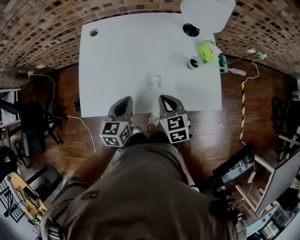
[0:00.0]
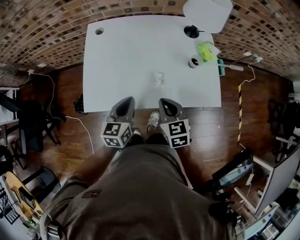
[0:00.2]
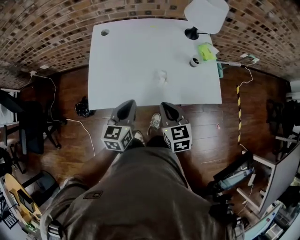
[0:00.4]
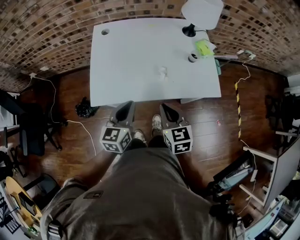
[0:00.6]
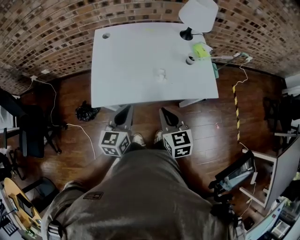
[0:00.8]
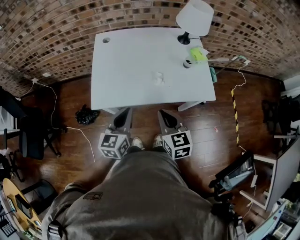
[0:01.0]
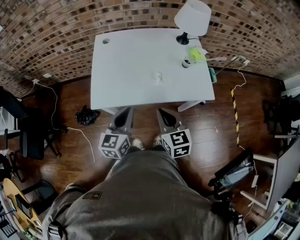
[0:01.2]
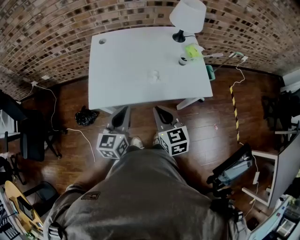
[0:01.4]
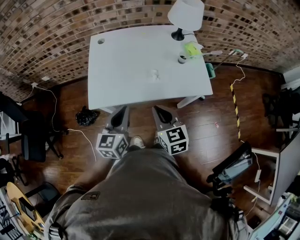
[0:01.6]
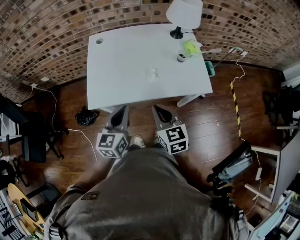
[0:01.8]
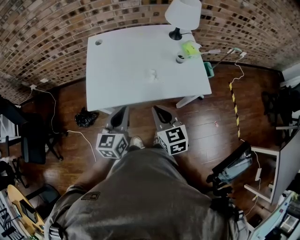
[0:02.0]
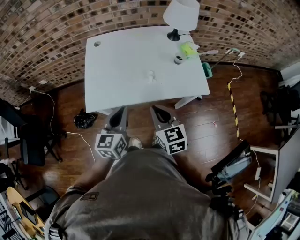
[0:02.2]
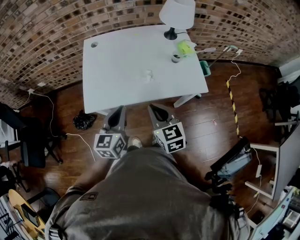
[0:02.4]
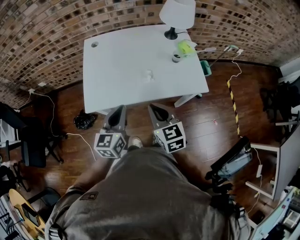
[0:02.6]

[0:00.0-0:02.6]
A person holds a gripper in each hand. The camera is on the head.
0:00.0 to 0:01.2: Both grippers travel together backward and upward, about 20 cm.
0:01.2 to 0:02.6: The two grippers keep their place.

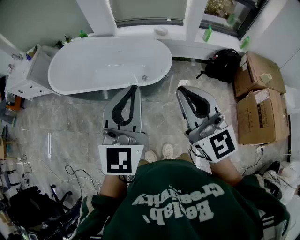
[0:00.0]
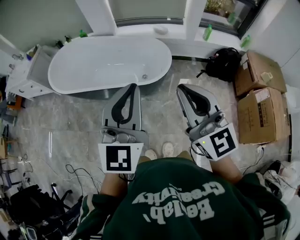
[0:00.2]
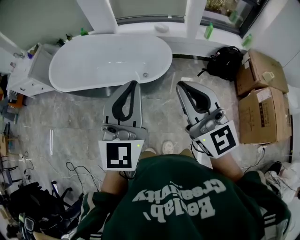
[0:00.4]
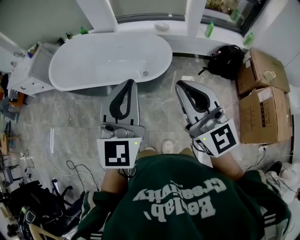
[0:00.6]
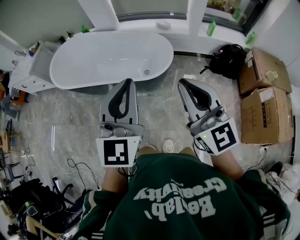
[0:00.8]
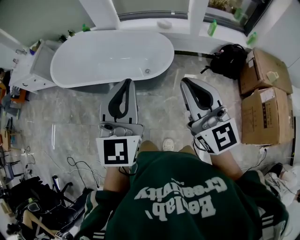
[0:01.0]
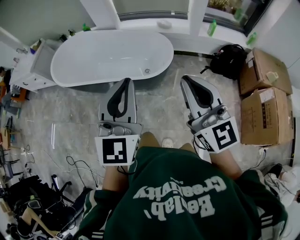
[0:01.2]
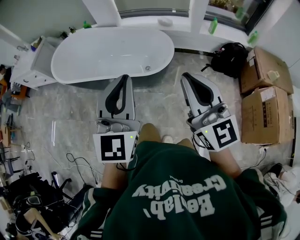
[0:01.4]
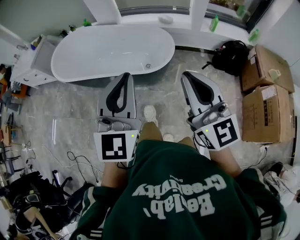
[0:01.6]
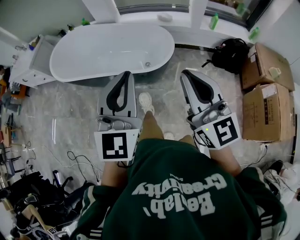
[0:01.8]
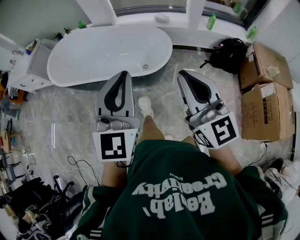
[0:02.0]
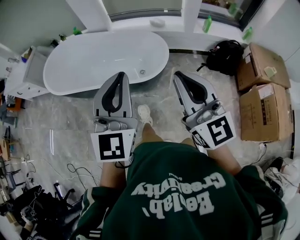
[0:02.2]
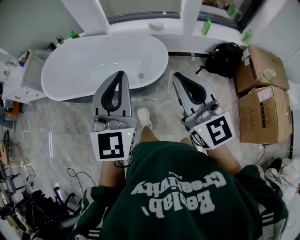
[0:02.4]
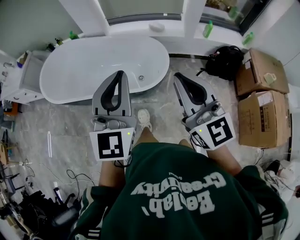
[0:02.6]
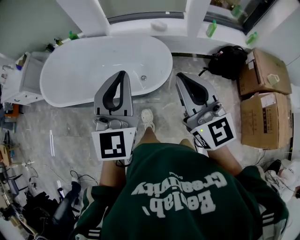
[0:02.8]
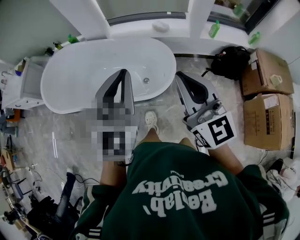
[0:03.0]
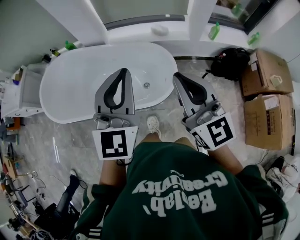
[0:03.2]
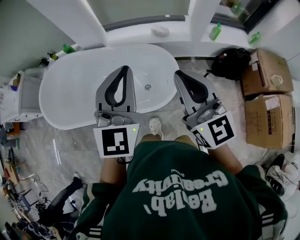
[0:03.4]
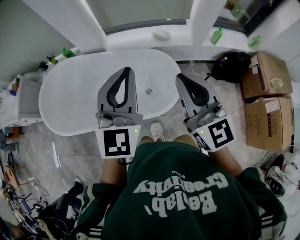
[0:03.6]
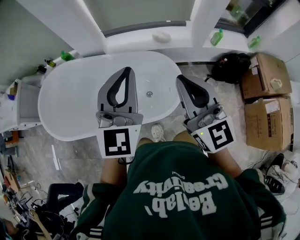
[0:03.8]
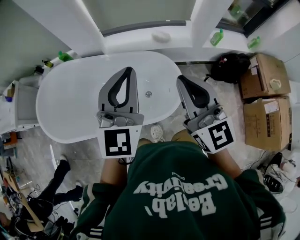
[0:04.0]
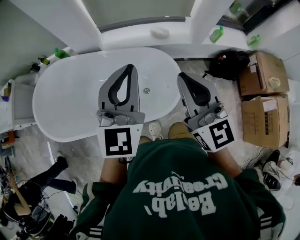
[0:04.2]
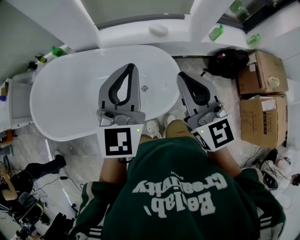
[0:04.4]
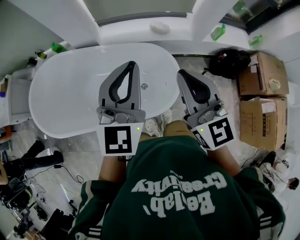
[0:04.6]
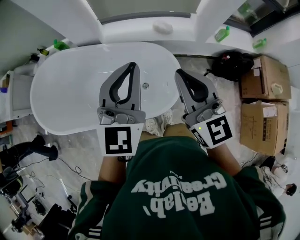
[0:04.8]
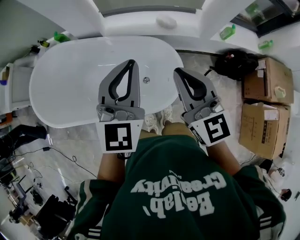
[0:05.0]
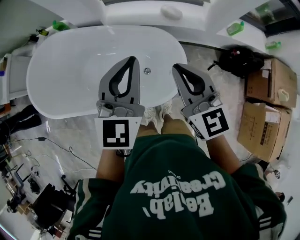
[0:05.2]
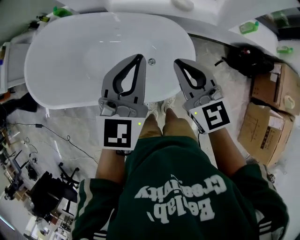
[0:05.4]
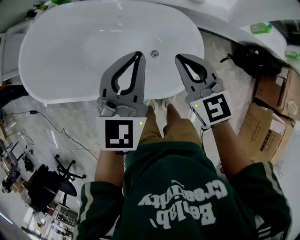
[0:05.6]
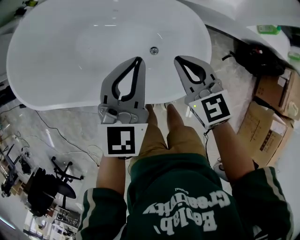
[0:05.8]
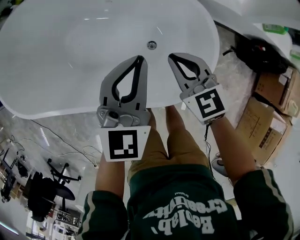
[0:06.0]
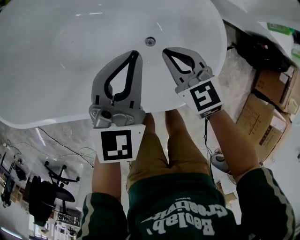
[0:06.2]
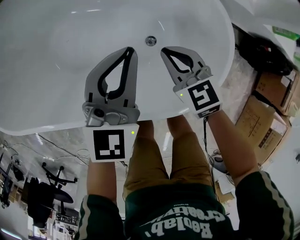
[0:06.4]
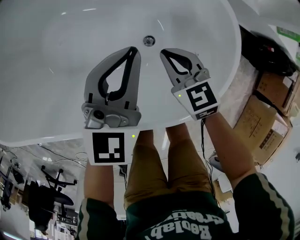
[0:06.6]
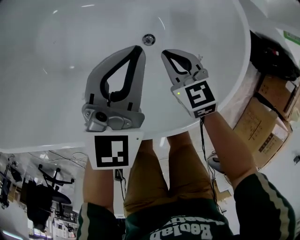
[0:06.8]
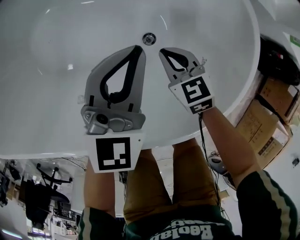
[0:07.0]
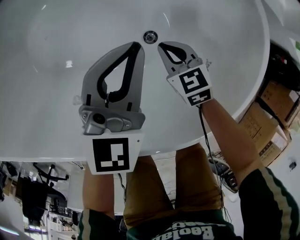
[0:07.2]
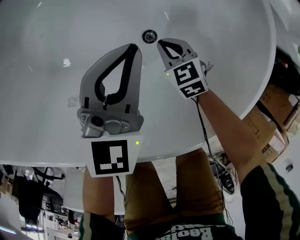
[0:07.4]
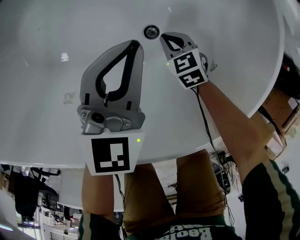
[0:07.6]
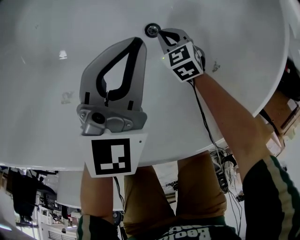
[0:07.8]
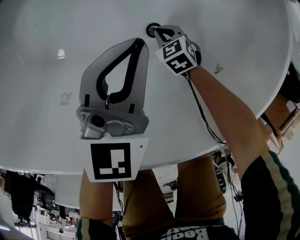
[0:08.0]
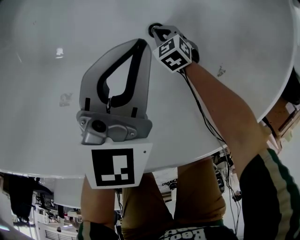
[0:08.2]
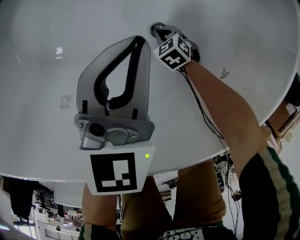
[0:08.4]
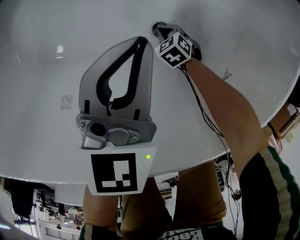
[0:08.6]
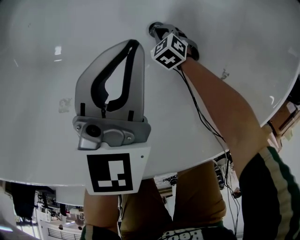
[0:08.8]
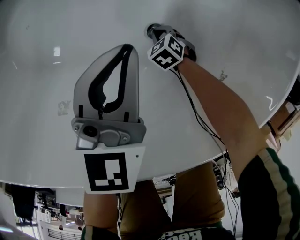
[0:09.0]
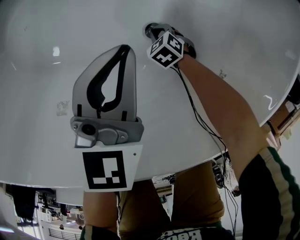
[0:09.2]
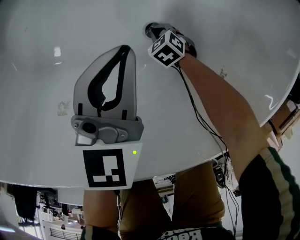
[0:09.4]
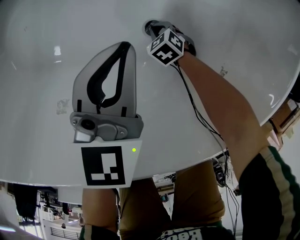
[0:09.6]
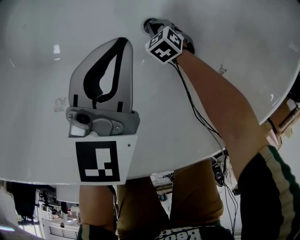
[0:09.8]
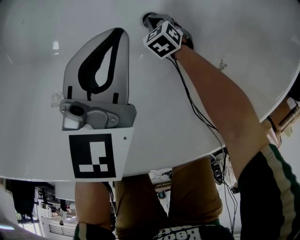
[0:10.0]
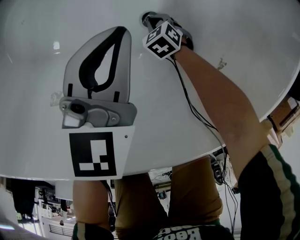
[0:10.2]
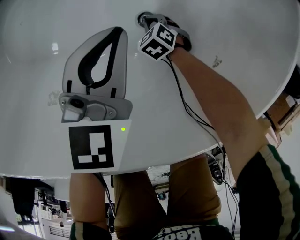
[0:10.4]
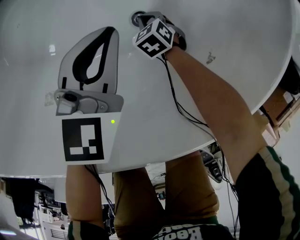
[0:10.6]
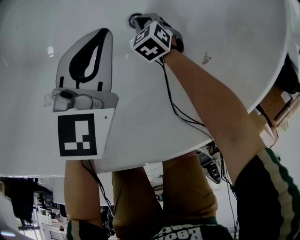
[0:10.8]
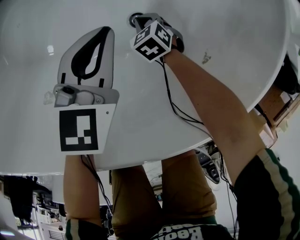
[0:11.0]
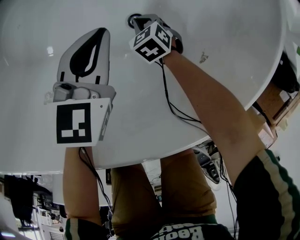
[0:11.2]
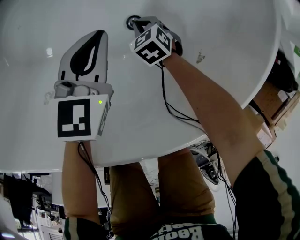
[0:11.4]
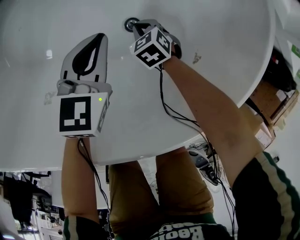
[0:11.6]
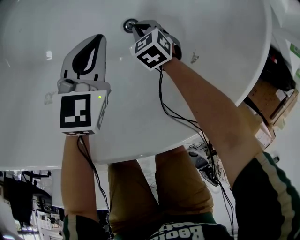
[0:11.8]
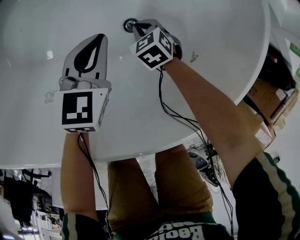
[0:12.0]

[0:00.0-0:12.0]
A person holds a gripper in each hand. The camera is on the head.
0:00.0 to 0:01.6: The right gripper heads to the right, covering about 5 cm.
0:01.6 to 0:03.0: The two grippers go approximately 25 cm forward.
0:03.0 to 0:04.4: The grippers both shift forward by roughly 20 cm.
0:04.4 to 0:06.0: The grippers both shift downward by roughly 35 cm. The left gripper swivels some 20 degrees, while the right gripper points its fingers some 30 degrees further downward.
0:06.0 to 0:07.6: The grippers both shift downward by approximately 35 cm. The right gripper rotates roughly 20 degrees.
0:07.6 to 0:09.0: The left gripper goes roughly 5 cm downward; the right gripper heads downward, covering approximately 15 cm, and swivels about 20 degrees.
0:09.0 to 0:10.4: The grippers stay close to where they were, moving slightly.
0:10.4 to 0:12.0: The right gripper shifts some 10 cm upward.

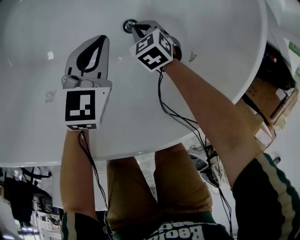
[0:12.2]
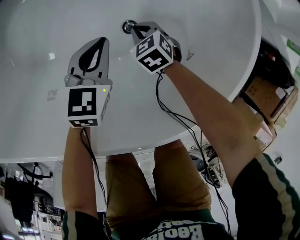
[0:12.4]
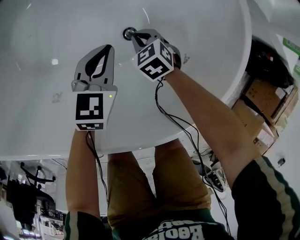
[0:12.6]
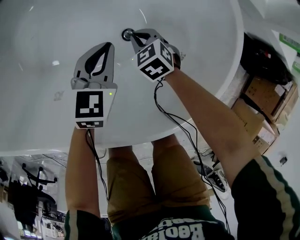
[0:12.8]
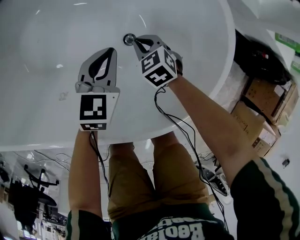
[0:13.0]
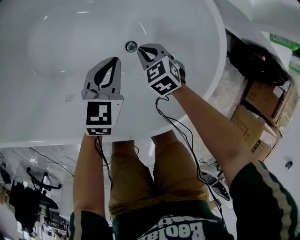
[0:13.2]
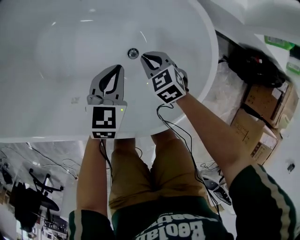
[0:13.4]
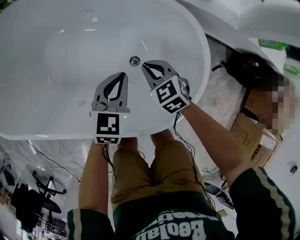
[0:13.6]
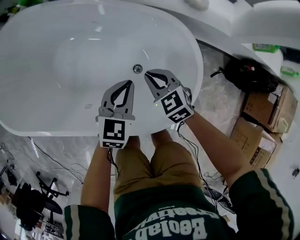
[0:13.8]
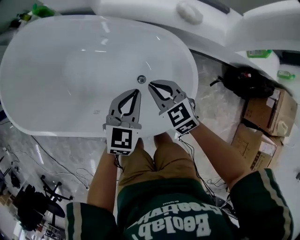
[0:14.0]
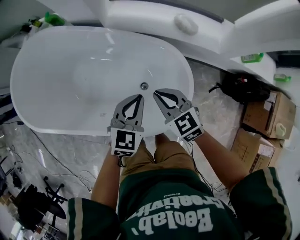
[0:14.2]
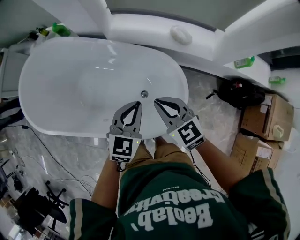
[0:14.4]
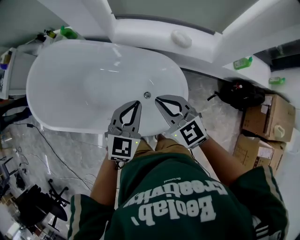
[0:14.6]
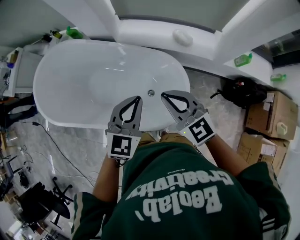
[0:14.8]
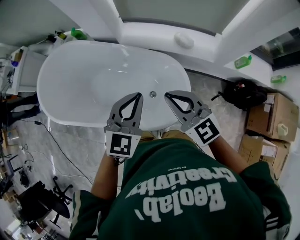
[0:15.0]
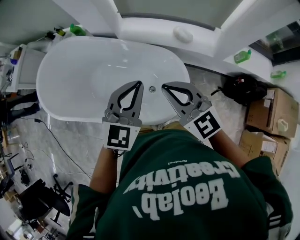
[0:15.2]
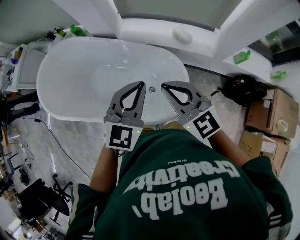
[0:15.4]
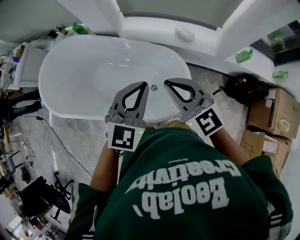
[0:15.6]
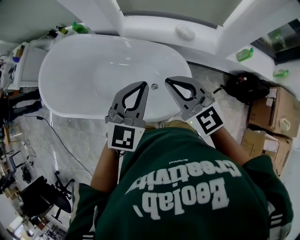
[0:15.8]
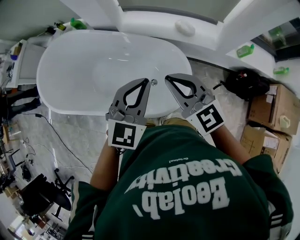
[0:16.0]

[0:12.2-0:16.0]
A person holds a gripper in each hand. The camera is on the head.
0:12.2 to 0:13.4: The right gripper is displaced upward by some 20 cm, while the left gripper heads upward, covering roughly 10 cm.
0:13.4 to 0:14.8: Both grippers travel together upward, about 50 cm. The left gripper changes its angle by some 20 degrees, while the right gripper tilts its fingers approximately 40 degrees upward.
0:14.8 to 0:16.0: Both grippers move upward, roughly 5 cm.

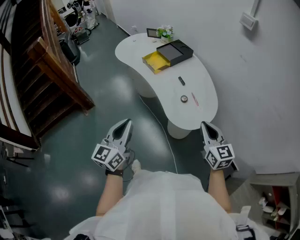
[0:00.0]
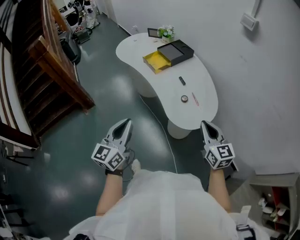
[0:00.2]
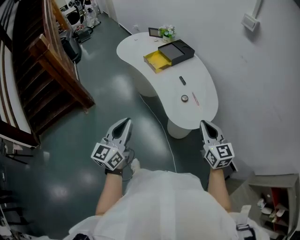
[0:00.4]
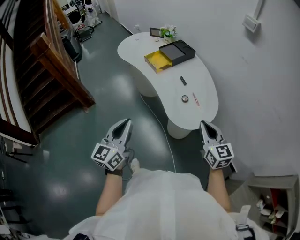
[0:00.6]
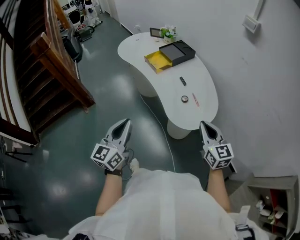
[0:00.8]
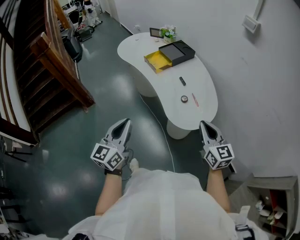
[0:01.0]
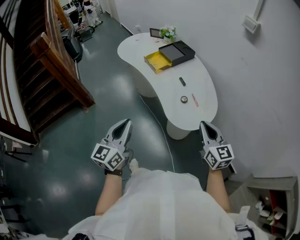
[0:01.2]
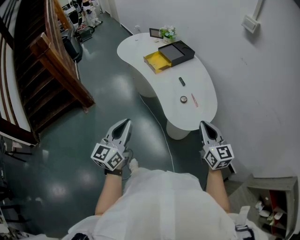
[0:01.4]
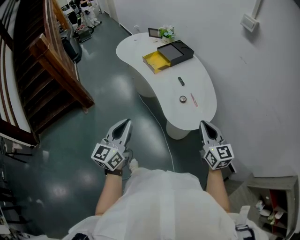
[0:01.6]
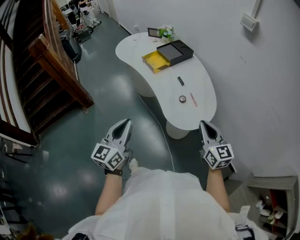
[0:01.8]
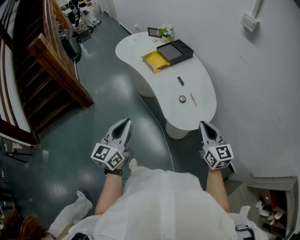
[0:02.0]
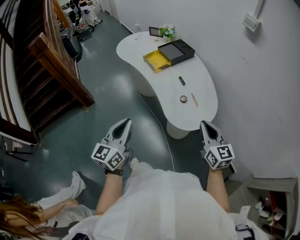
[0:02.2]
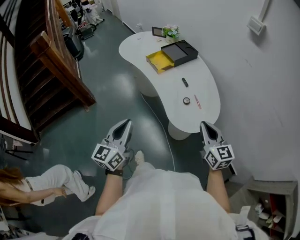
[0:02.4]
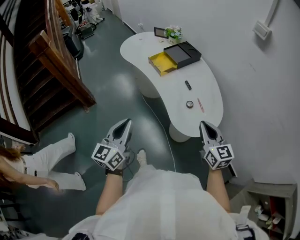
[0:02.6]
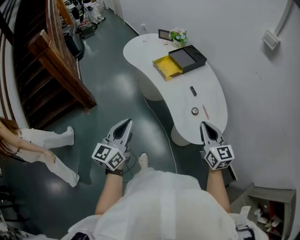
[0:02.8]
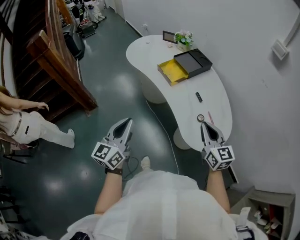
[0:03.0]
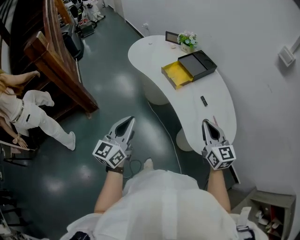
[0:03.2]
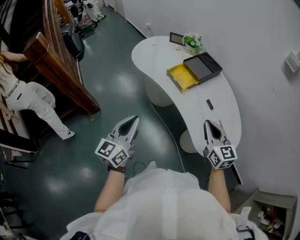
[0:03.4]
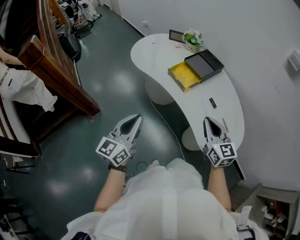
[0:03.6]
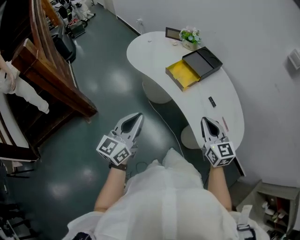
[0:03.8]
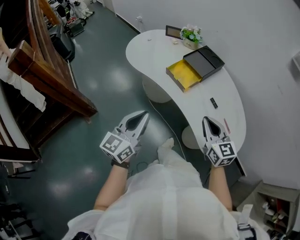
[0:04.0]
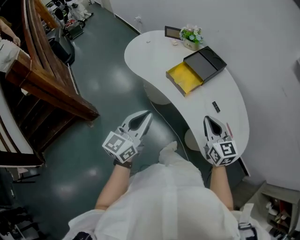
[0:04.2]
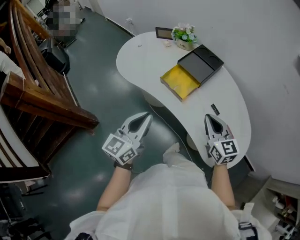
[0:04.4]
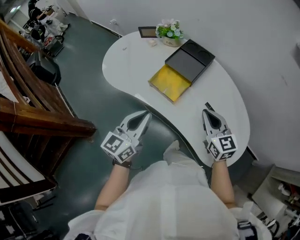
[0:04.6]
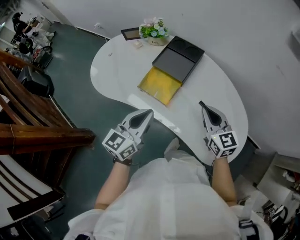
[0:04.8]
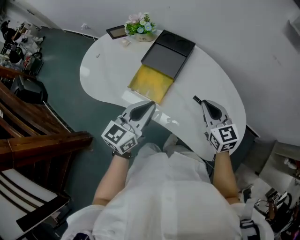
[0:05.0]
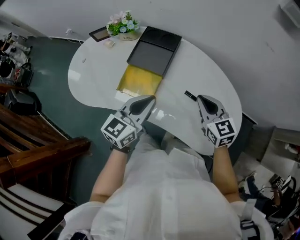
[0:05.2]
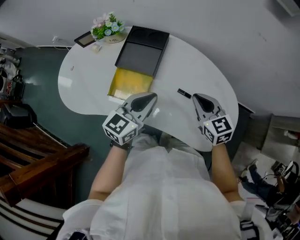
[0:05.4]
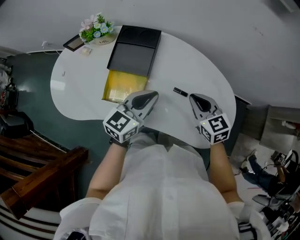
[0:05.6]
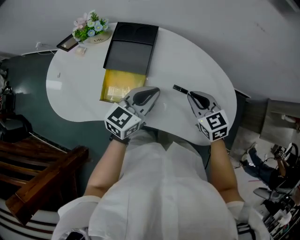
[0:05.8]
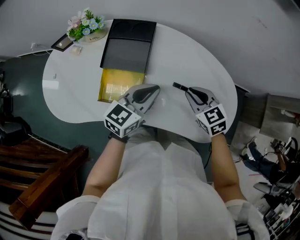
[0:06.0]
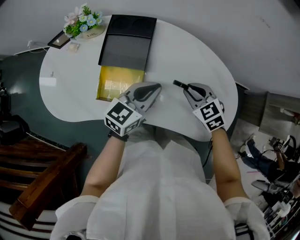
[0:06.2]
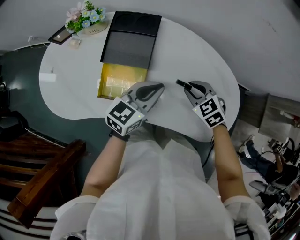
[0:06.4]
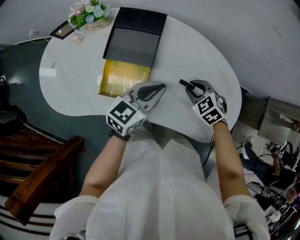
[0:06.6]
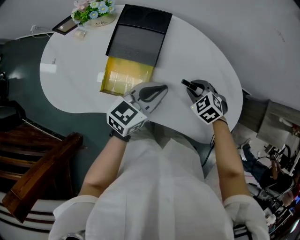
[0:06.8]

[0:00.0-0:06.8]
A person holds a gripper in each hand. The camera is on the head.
0:00.0 to 0:01.4: Neither gripper changes place.
0:01.4 to 0:02.8: Both grippers travel together forward and to the left, approximately 10 cm.
0:02.8 to 0:04.0: The grippers both shift forward and to the left by some 20 cm.
0:04.0 to 0:05.4: The left gripper shifts by some 35 cm, and changes its angle by approximately 50 degrees, while the right gripper moves about 25 cm, and rotates approximately 30 degrees.
0:05.4 to 0:06.8: The right gripper heads downward, covering roughly 15 cm, and points its fingers approximately 40 degrees further downward. Meanwhile the left gripper travels downward by approximately 5 cm.
